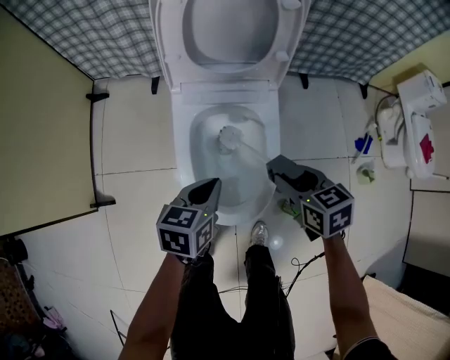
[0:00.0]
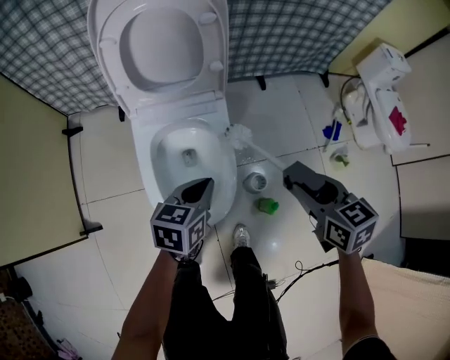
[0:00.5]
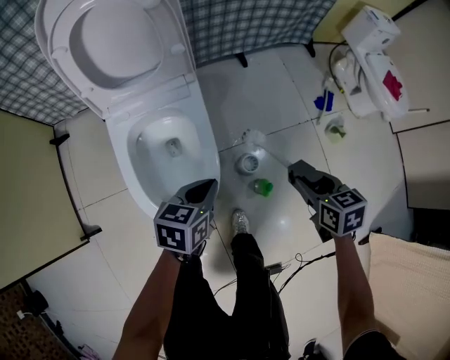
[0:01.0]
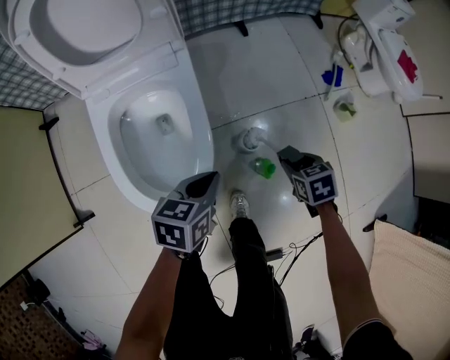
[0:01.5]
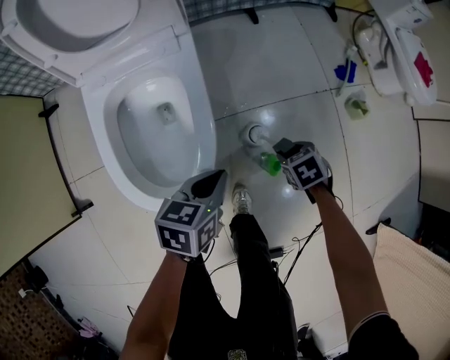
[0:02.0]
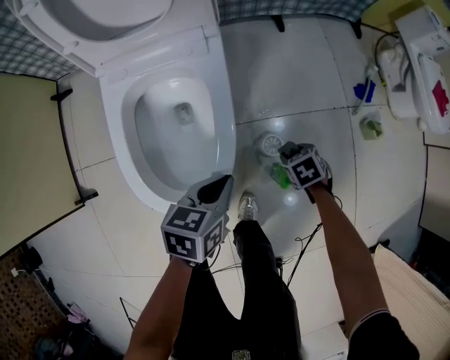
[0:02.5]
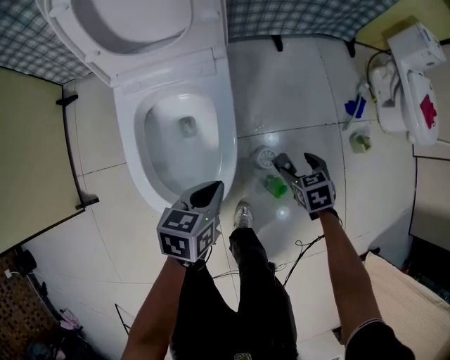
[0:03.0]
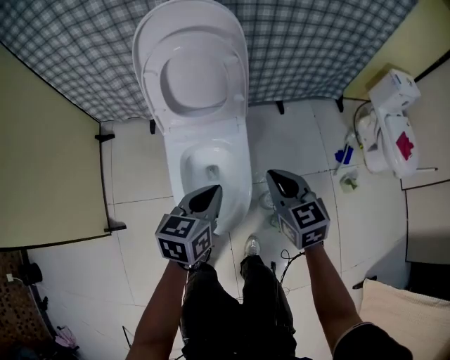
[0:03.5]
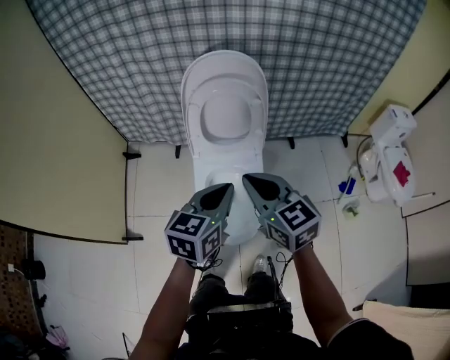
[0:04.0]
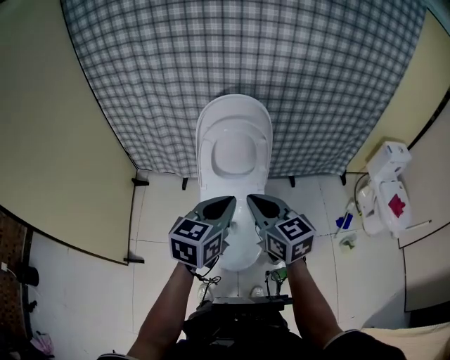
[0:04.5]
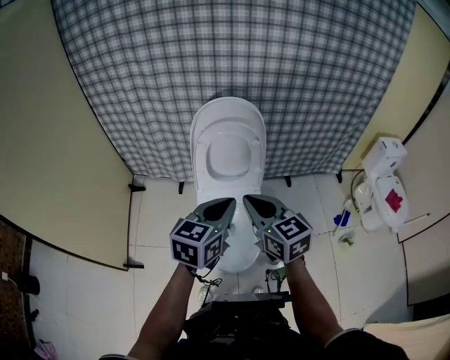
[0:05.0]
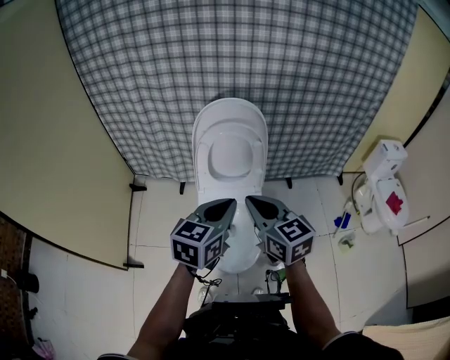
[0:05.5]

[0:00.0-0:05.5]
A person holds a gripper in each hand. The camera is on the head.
0:00.0 to 0:02.0: The right gripper moves roughly 35 cm, and swivels about 30 degrees; the left gripper moves roughly 25 cm.
0:02.0 to 0:03.5: The left gripper is displaced upward by about 25 cm, and turns by some 20 degrees, while the right gripper moves upward, approximately 40 cm, tilts its fingers roughly 50 degrees upward, and closes its fingers.
0:03.5 to 0:05.5: The left gripper shifts roughly 20 cm upward. Meanwhile the right gripper shifts about 25 cm upward and to the left.

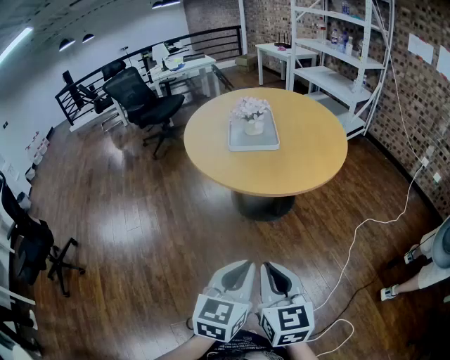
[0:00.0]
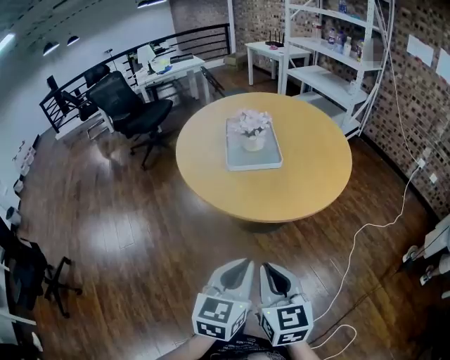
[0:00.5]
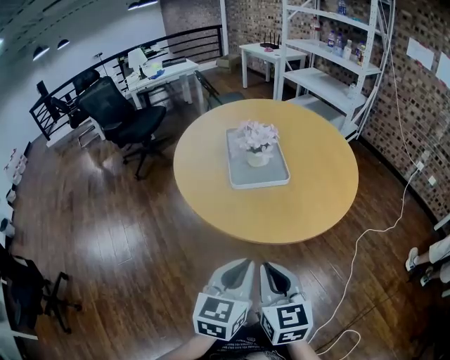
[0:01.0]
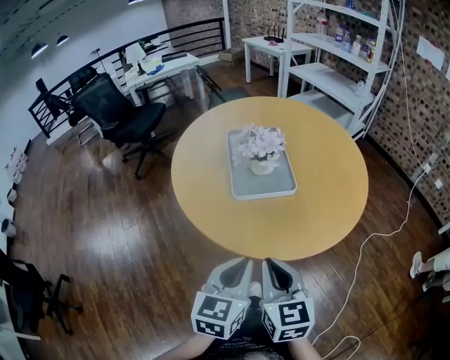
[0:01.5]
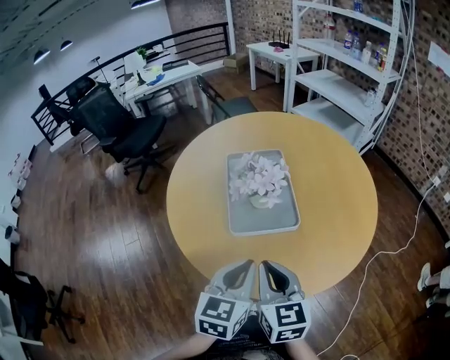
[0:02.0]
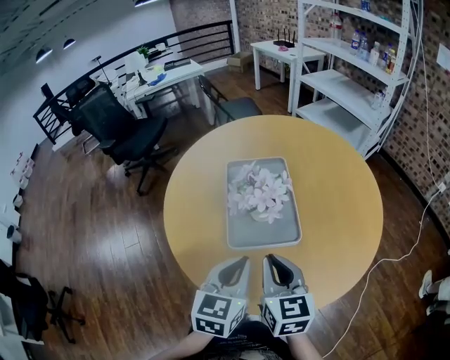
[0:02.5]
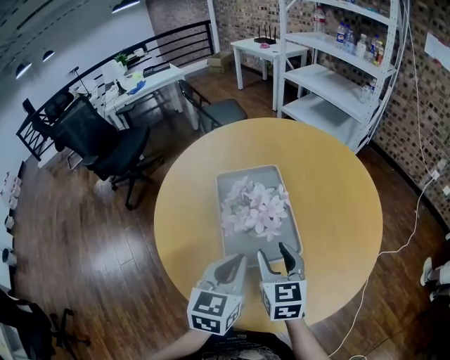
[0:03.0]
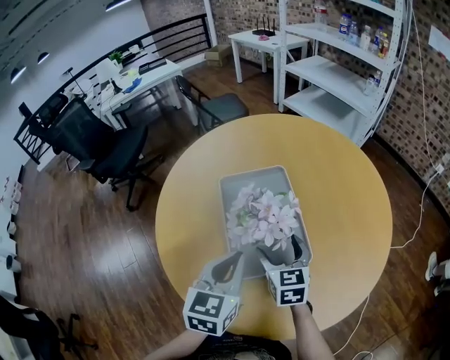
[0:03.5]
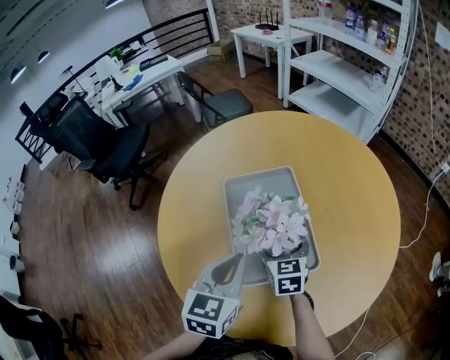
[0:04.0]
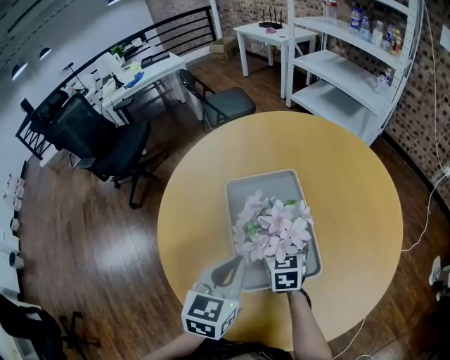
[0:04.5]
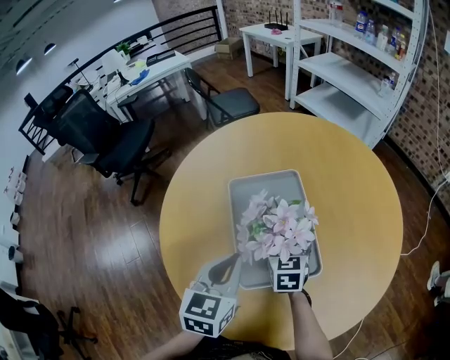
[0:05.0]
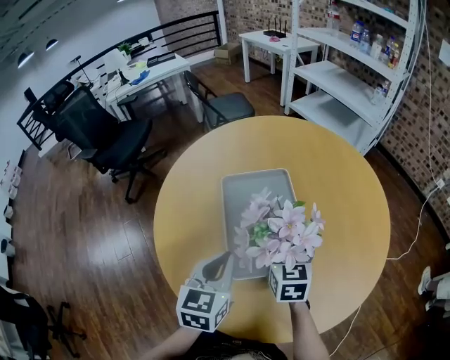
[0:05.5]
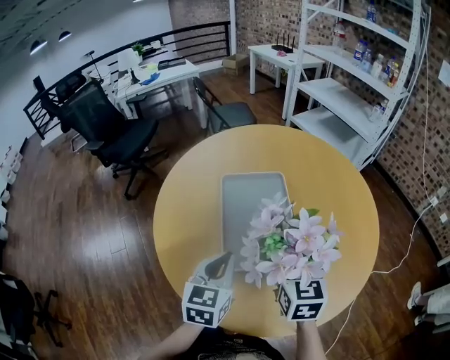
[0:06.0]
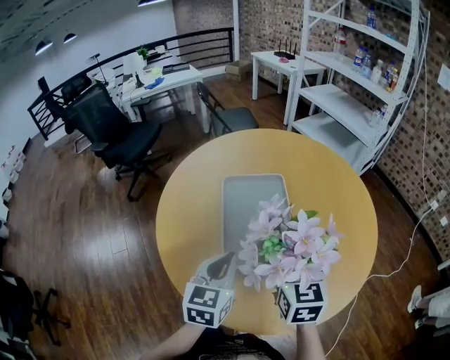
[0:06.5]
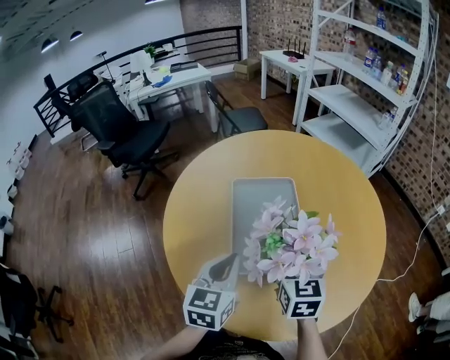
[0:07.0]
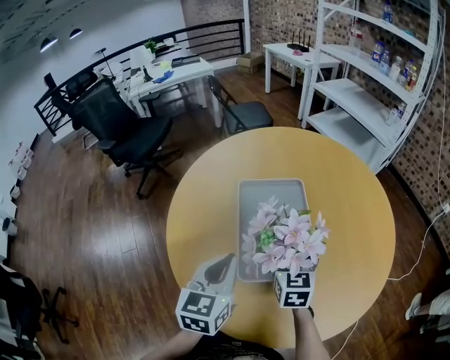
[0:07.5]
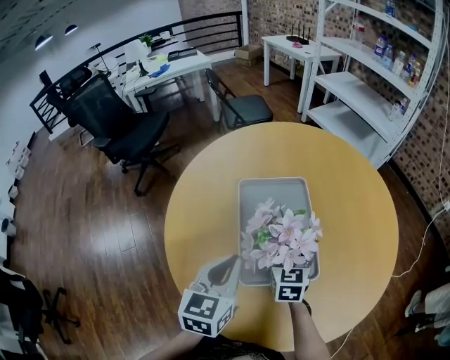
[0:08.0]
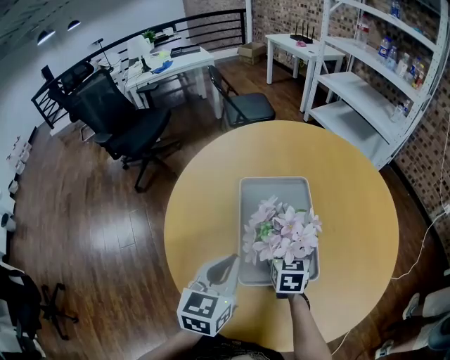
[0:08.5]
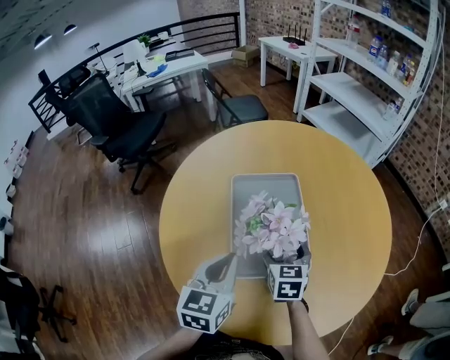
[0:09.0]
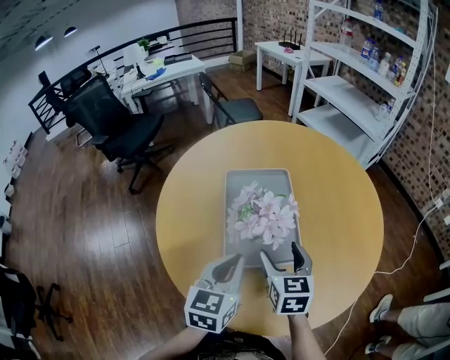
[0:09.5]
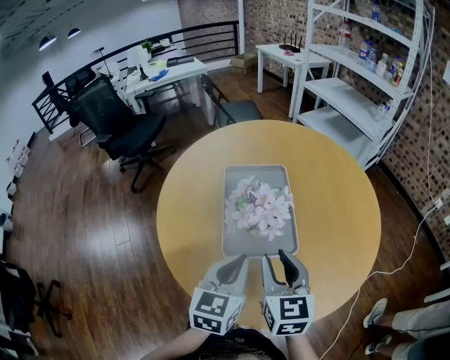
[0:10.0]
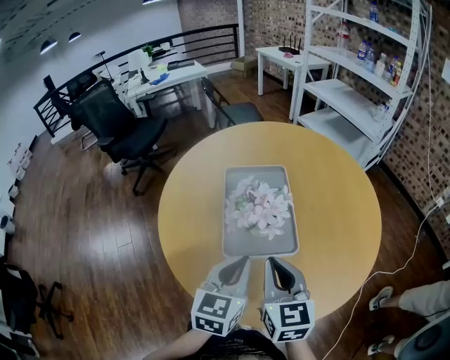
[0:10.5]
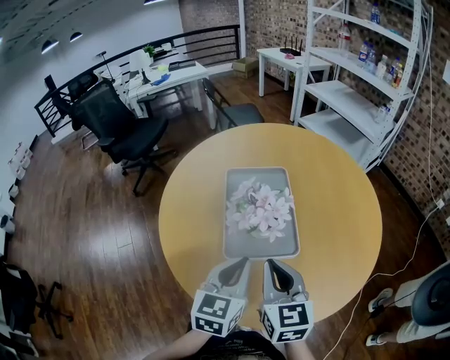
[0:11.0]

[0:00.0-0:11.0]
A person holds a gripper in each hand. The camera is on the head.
0:00.0 to 0:02.0: The pair of grippers is taken forward, some 50 cm.
0:02.0 to 0:03.5: The left gripper heads forward, covering about 20 cm; the right gripper shifts roughly 25 cm forward and downward, and opens.
0:05.5 to 0:07.5: The right gripper moves about 10 cm backward and comes back.
0:09.0 to 0:11.0: The left gripper shifts about 10 cm backward and to the right, while the right gripper shifts about 20 cm backward and upward, and closes.

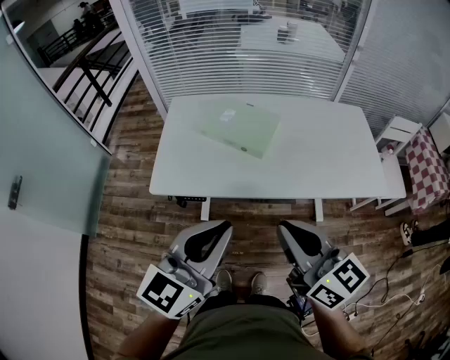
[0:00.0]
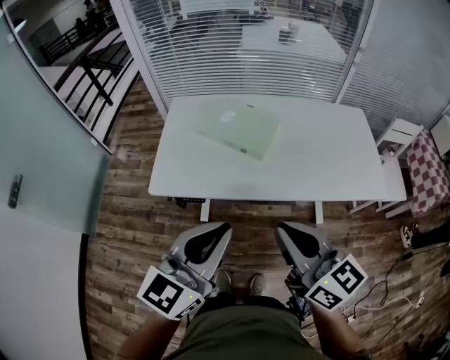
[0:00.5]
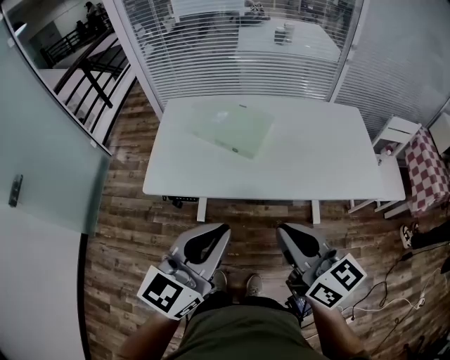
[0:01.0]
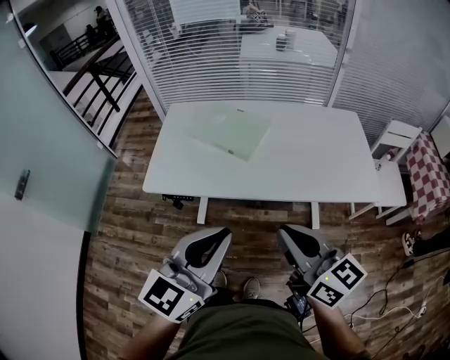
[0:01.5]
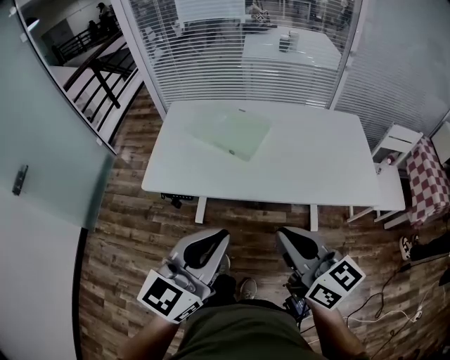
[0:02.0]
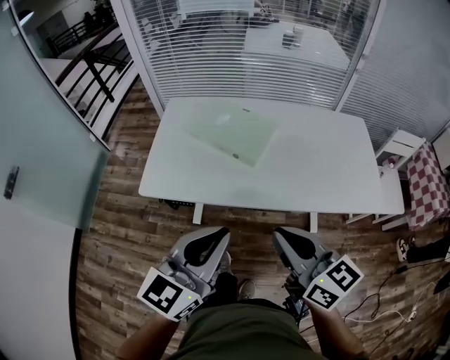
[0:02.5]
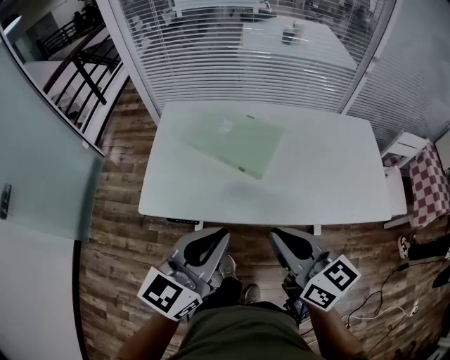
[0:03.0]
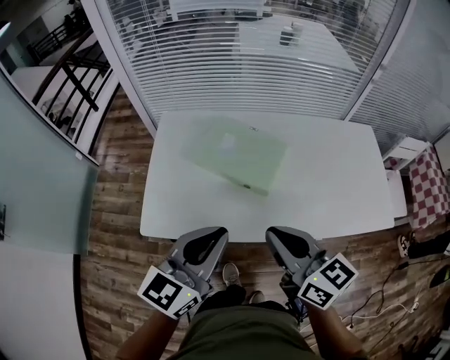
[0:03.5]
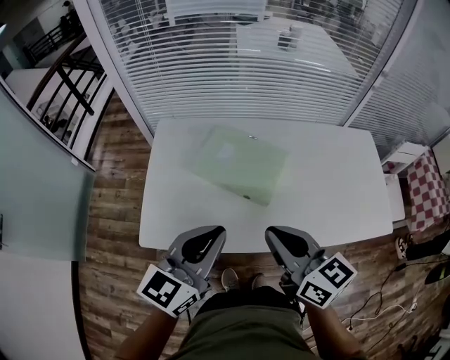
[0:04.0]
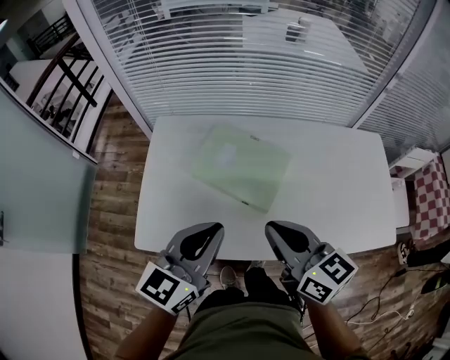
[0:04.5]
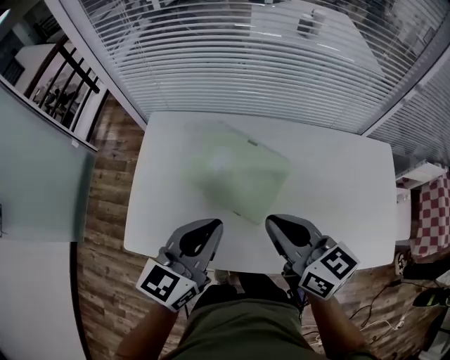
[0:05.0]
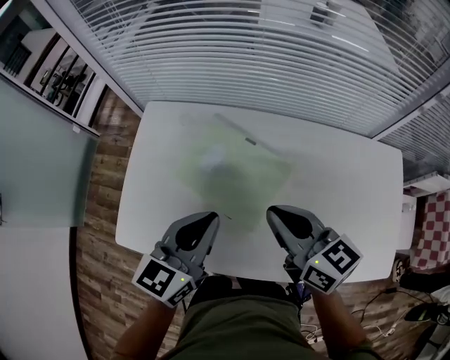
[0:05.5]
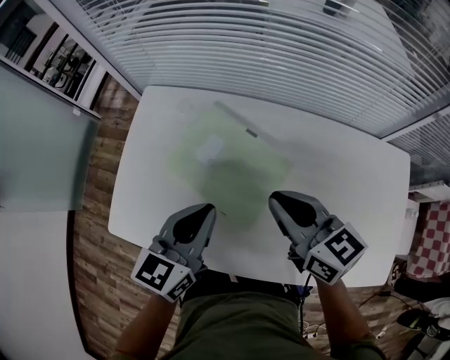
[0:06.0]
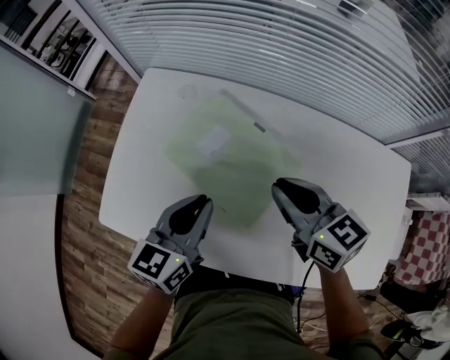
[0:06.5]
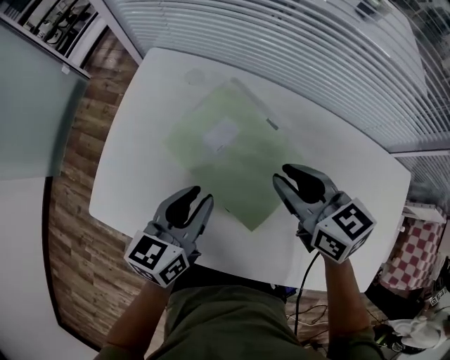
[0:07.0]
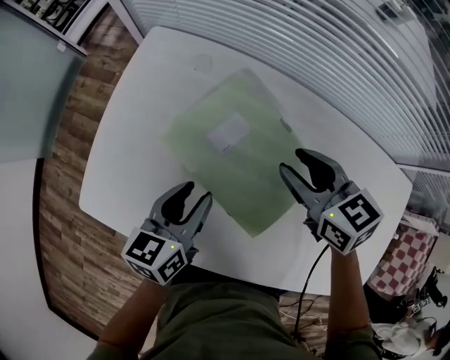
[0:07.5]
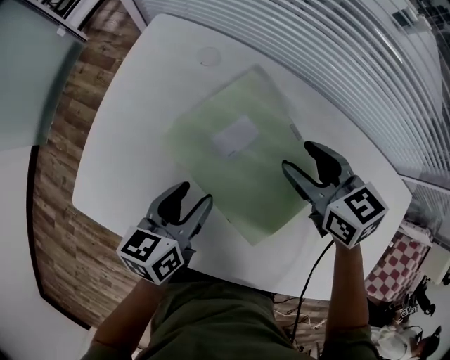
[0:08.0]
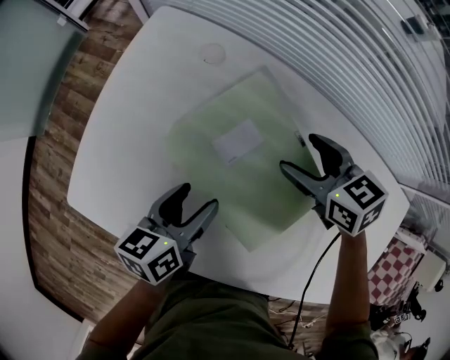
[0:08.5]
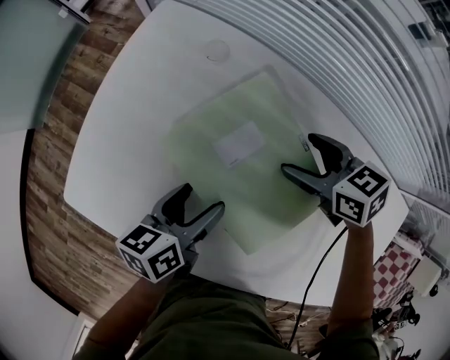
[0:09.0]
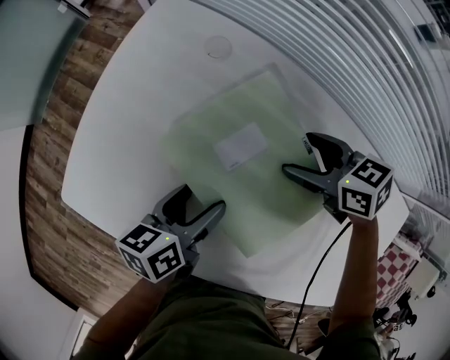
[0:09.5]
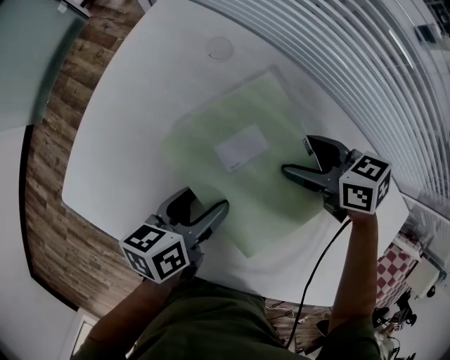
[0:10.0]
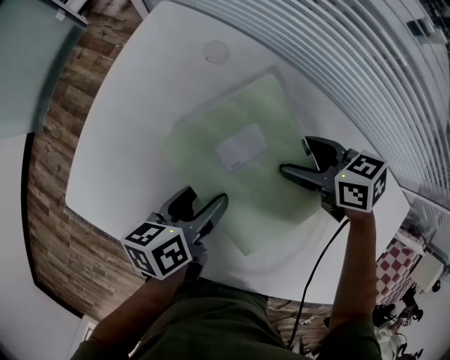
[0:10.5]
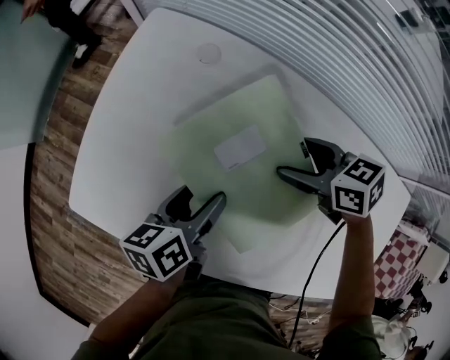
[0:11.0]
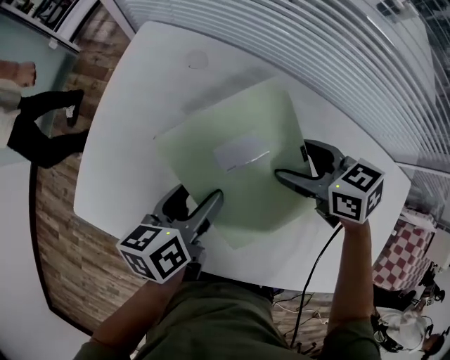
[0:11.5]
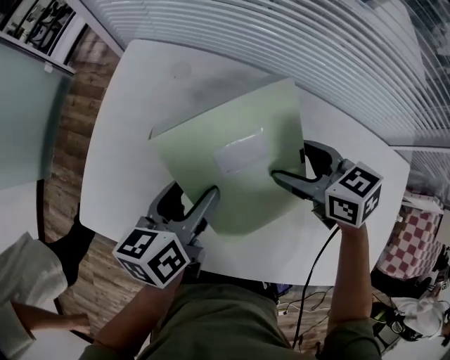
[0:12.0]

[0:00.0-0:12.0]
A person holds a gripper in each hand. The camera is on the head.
0:00.0 to 0:02.0: The two grippers go about 10 cm to the right.
0:02.0 to 0:04.0: Both grippers move forward and to the left, roughly 30 cm.
0:04.0 to 0:06.0: The left gripper shifts approximately 20 cm forward, downward and to the right, and turns by some 20 degrees, while the right gripper is displaced forward, to the right and downward by approximately 25 cm.
0:06.0 to 0:08.0: The left gripper travels downward and to the left by roughly 20 cm, rotates some 30 degrees, and opens. The right gripper goes approximately 20 cm forward and downward, swivels about 30 degrees, and opens up.
0:08.0 to 0:10.0: The right gripper shifts approximately 10 cm downward, rotates approximately 30 degrees, and opens; the left gripper opens up.
0:10.0 to 0:12.0: The left gripper shifts roughly 10 cm upward, while the right gripper shifts some 10 cm upward and backward, and swivels approximately 20 degrees.
